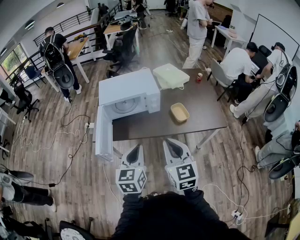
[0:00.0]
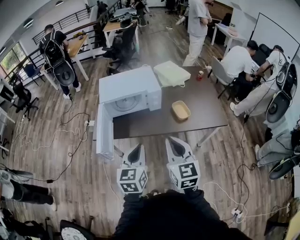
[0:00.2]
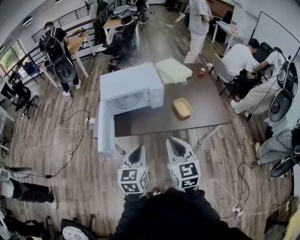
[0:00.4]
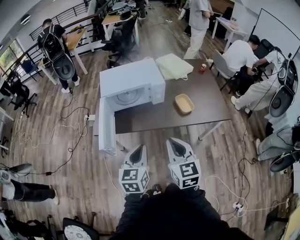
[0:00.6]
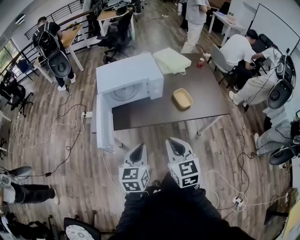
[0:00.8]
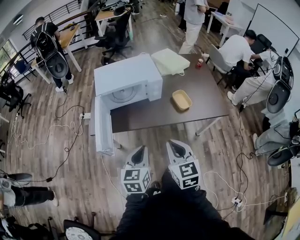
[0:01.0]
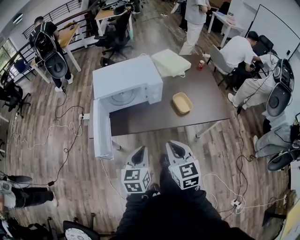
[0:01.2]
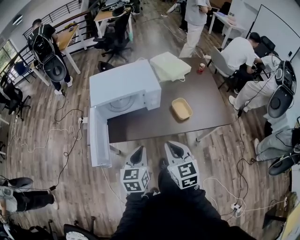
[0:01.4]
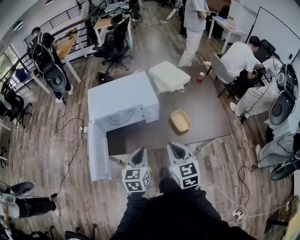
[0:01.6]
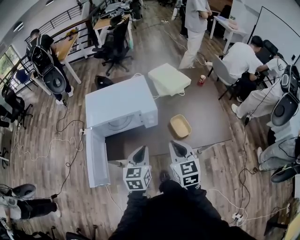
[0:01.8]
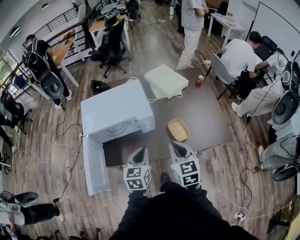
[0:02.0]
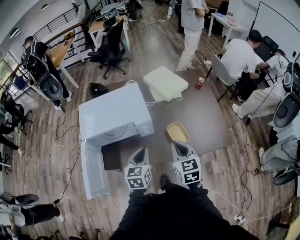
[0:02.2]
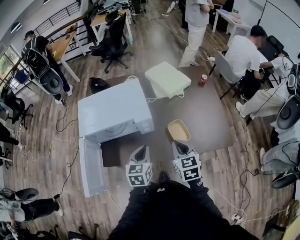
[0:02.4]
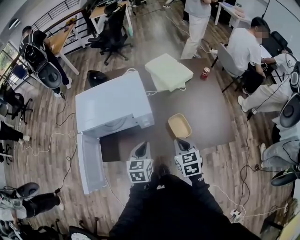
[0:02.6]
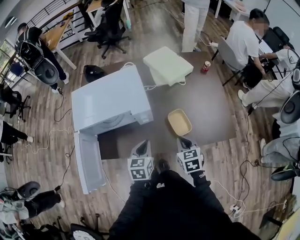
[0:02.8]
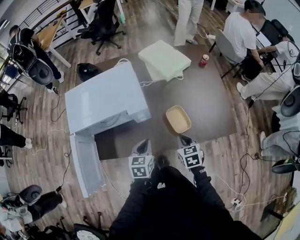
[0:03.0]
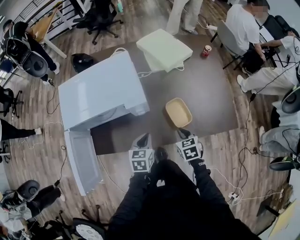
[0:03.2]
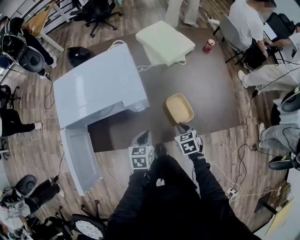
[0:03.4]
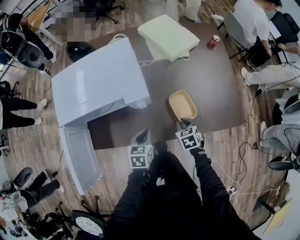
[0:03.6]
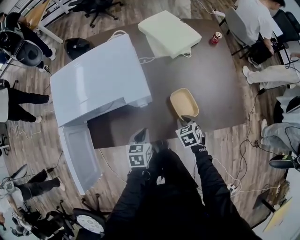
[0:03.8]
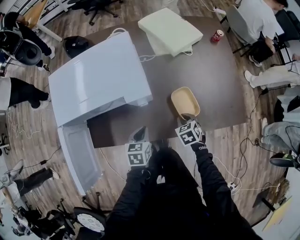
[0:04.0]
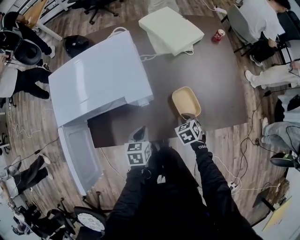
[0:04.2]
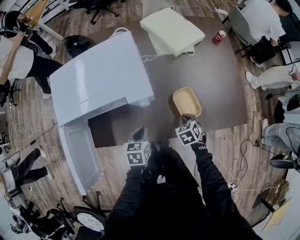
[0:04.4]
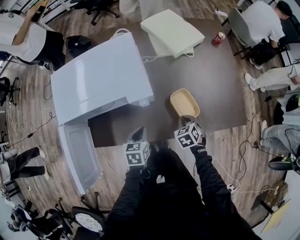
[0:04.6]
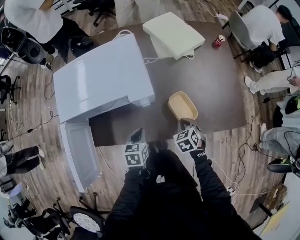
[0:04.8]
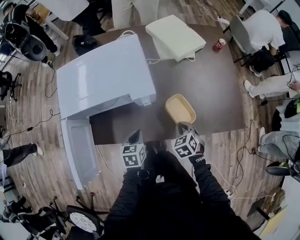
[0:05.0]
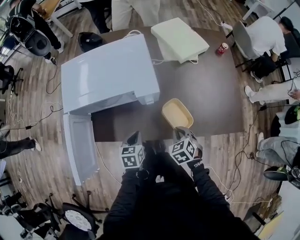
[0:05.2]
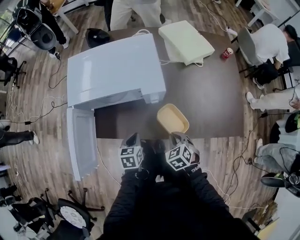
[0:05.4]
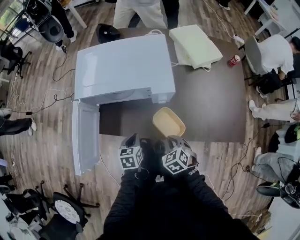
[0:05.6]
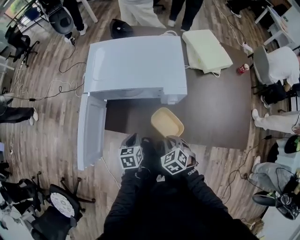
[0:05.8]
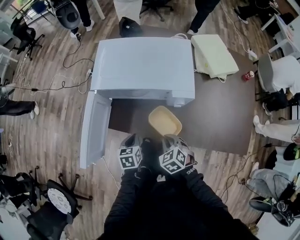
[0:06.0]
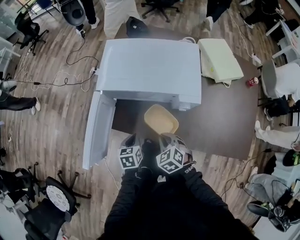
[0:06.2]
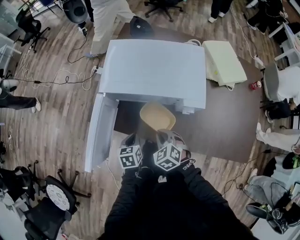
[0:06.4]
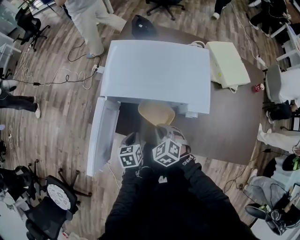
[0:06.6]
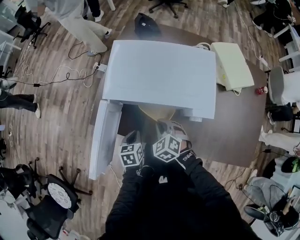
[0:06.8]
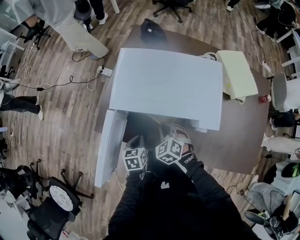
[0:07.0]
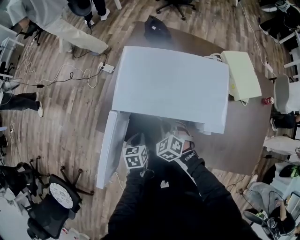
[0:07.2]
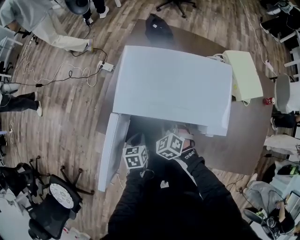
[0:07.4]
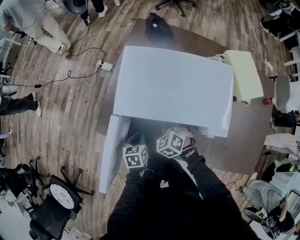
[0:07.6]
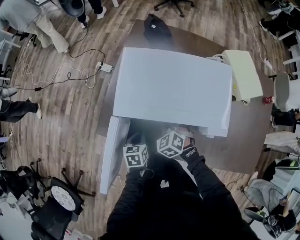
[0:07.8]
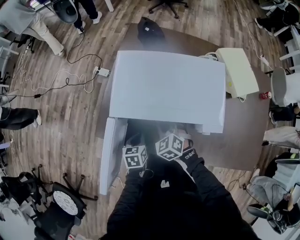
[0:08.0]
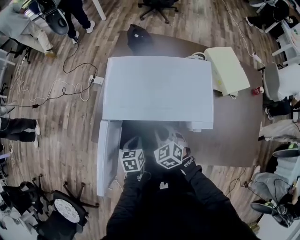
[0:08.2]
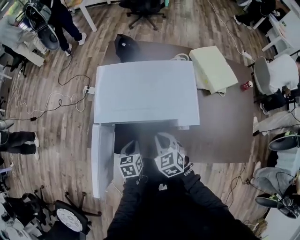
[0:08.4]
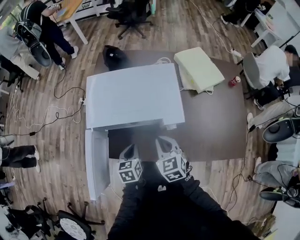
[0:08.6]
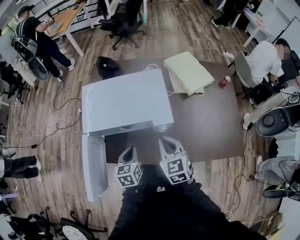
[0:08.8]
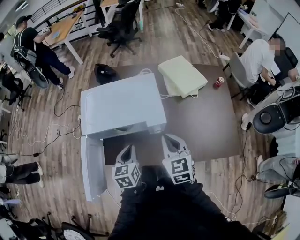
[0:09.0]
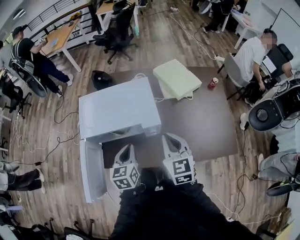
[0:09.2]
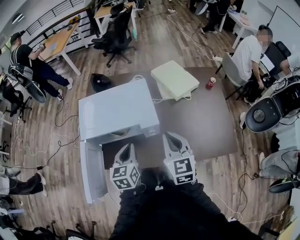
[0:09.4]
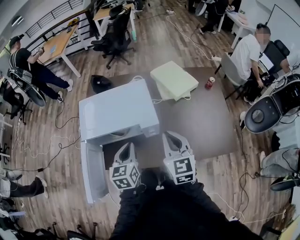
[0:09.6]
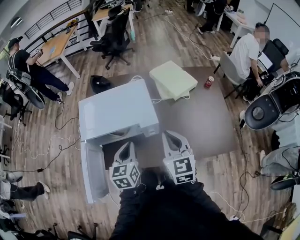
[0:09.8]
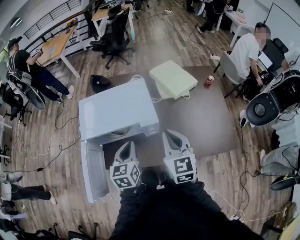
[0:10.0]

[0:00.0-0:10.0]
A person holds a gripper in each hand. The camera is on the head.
0:00.0 to 0:01.4: The two grippers go about 15 cm forward and downward.
0:01.4 to 0:02.8: The right gripper shifts some 30 cm forward, downward and to the right, and rotates some 20 degrees. Meanwhile the left gripper is displaced forward, to the right and downward by roughly 25 cm.
0:02.8 to 0:04.2: The two grippers go roughly 15 cm downward. The right gripper rotates approximately 30 degrees.
0:04.2 to 0:05.8: The left gripper travels to the left and backward by about 15 cm, and rotates some 20 degrees, while the right gripper moves to the left, backward and upward, roughly 20 cm, and changes its angle by some 30 degrees.
0:05.8 to 0:07.2: The right gripper moves forward and to the left, some 25 cm, and rotates approximately 20 degrees. Meanwhile the left gripper goes roughly 15 cm forward and to the left.
0:07.2 to 0:08.6: The right gripper goes roughly 20 cm upward, to the right and backward, and changes its angle by about 40 degrees. Meanwhile the left gripper moves to the right and upward, some 10 cm.
0:08.6 to 0:10.0: Both grippers move upward and to the right, about 20 cm. The right gripper turns by some 30 degrees. The left gripper turns by roughly 20 degrees.

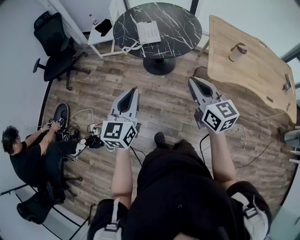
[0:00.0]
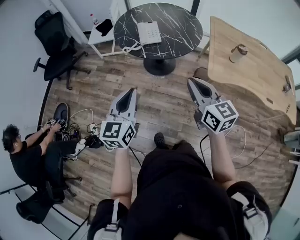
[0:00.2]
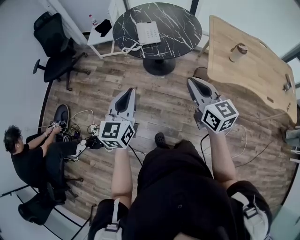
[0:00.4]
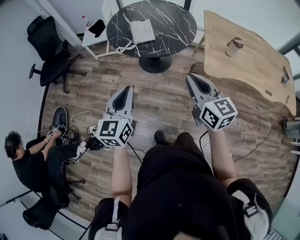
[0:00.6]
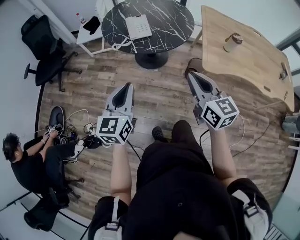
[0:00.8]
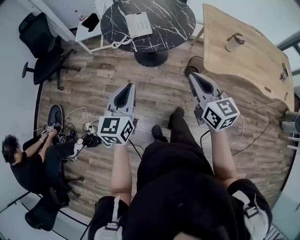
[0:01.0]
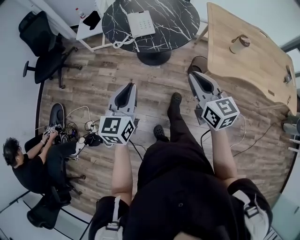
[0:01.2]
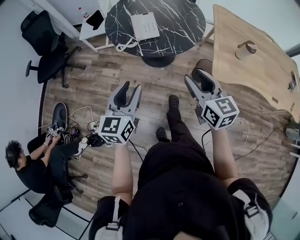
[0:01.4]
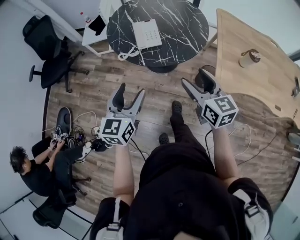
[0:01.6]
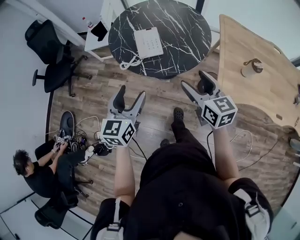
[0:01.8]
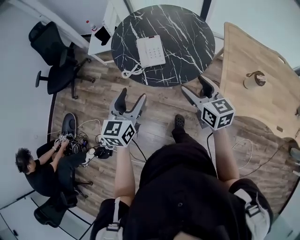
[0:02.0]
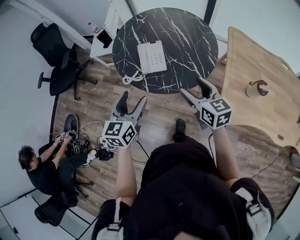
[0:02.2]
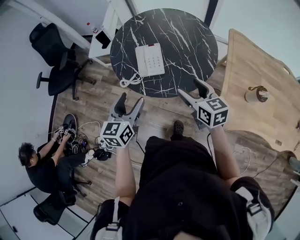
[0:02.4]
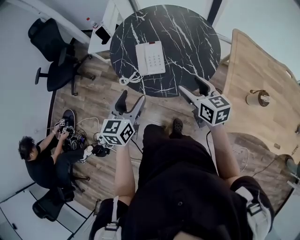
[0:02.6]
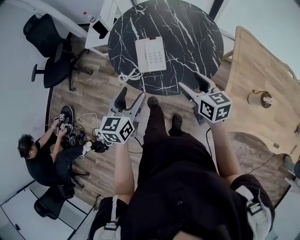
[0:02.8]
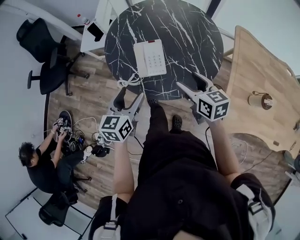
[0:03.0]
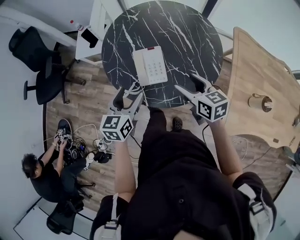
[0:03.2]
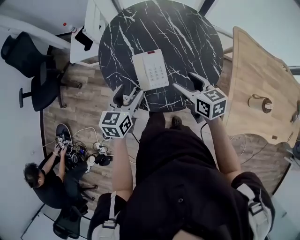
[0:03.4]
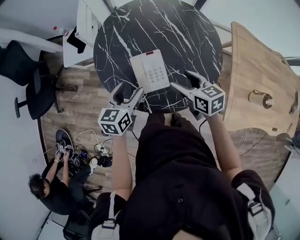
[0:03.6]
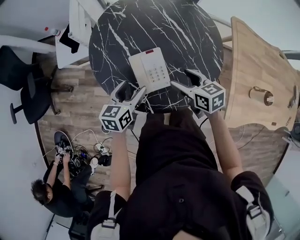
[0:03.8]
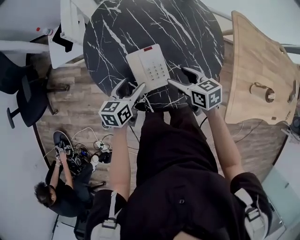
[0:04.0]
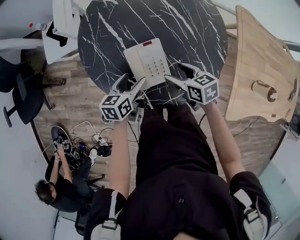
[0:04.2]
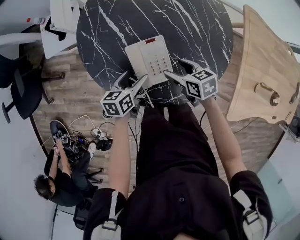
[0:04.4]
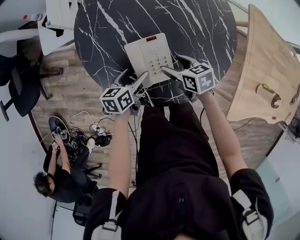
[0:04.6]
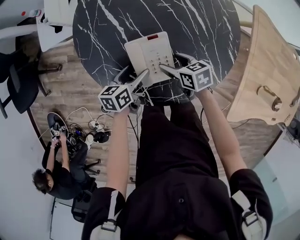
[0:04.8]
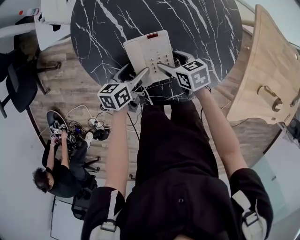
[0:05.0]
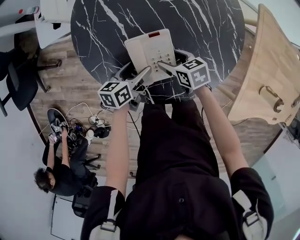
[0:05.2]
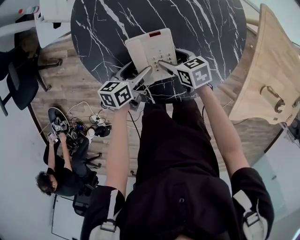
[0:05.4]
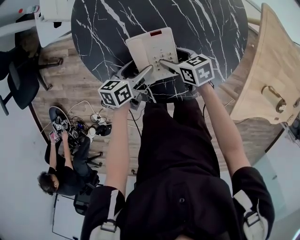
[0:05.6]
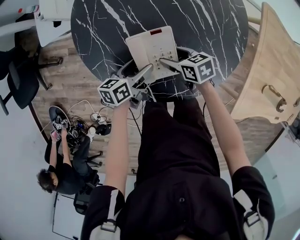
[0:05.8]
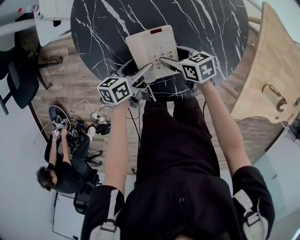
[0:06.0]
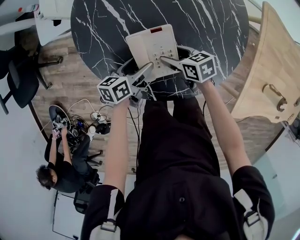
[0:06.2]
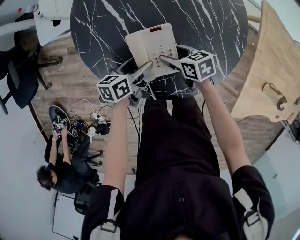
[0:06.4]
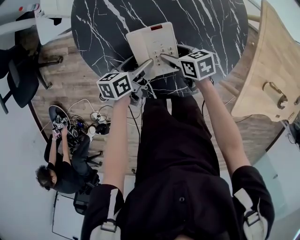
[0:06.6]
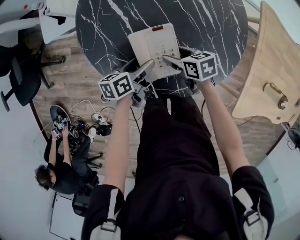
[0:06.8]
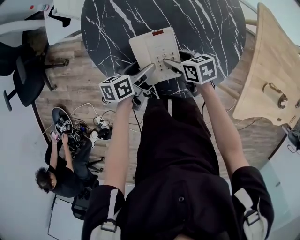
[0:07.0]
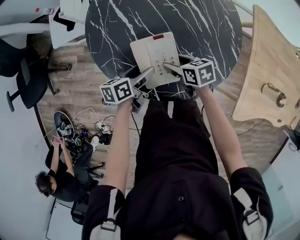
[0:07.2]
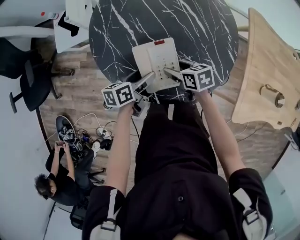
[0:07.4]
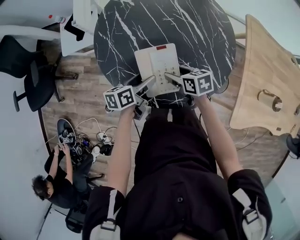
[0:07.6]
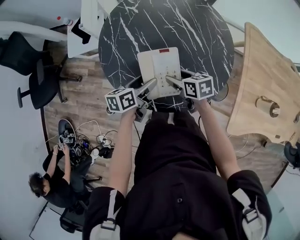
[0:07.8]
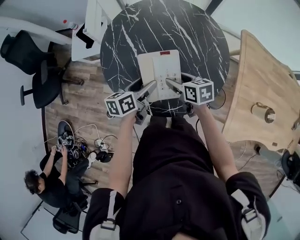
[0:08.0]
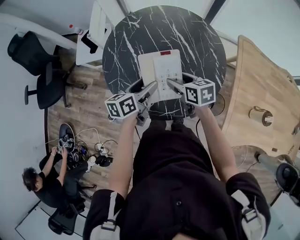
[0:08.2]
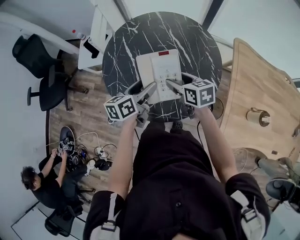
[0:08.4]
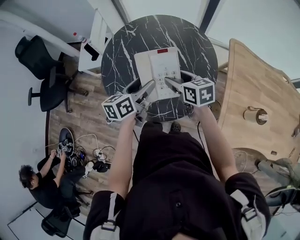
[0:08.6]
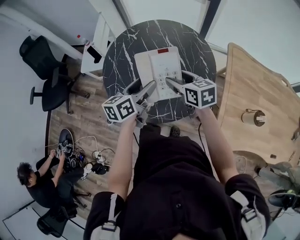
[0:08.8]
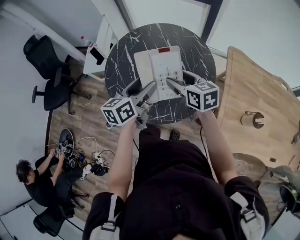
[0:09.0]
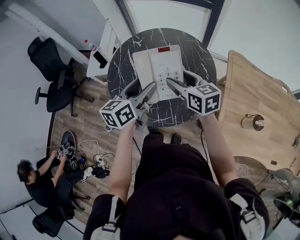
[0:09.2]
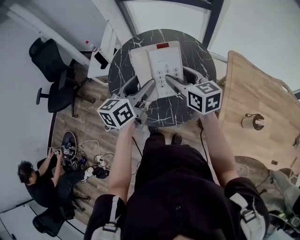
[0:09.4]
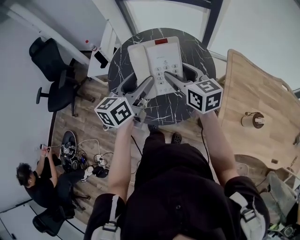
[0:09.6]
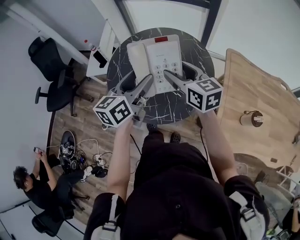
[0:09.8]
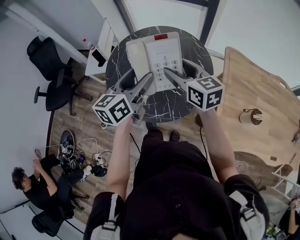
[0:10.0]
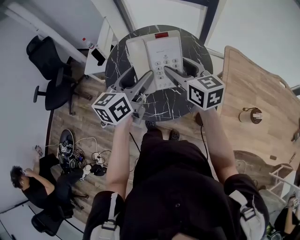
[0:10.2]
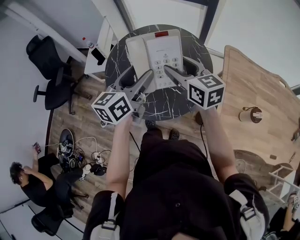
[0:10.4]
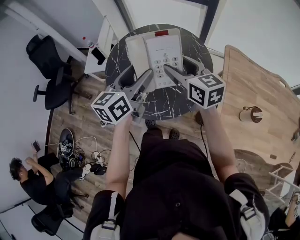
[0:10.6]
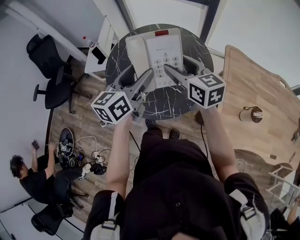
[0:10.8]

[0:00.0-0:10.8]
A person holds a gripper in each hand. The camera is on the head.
0:00.0 to 0:01.6: The grippers both shift forward by about 15 cm. The left gripper opens; the right gripper opens its fingers.
0:01.6 to 0:03.0: The two grippers go about 25 cm forward.
0:03.0 to 0:04.6: The right gripper shifts roughly 25 cm downward, forward and to the left, and rotates some 30 degrees; the left gripper heads downward and forward, covering roughly 30 cm, and turns by approximately 40 degrees.
0:04.6 to 0:06.2: There are only small adjustments of the grippers.
0:06.2 to 0:07.8: Both grippers travel together upward, some 10 cm.
0:07.8 to 0:09.2: The two grippers go roughly 25 cm upward and to the right. The left gripper changes its angle by roughly 30 degrees; the right gripper swivels some 30 degrees.
0:09.2 to 0:10.8: Both grippers move upward, about 5 cm.

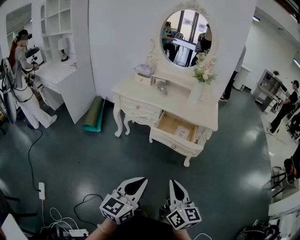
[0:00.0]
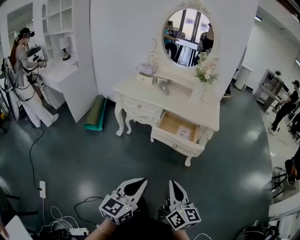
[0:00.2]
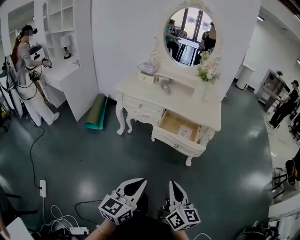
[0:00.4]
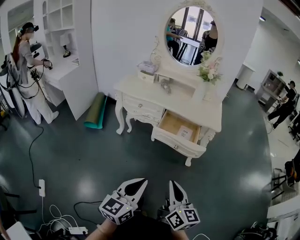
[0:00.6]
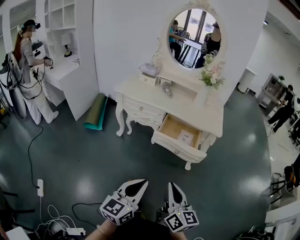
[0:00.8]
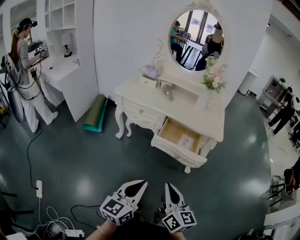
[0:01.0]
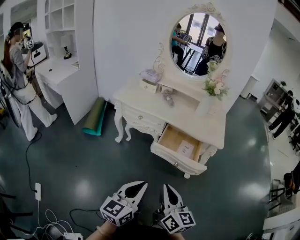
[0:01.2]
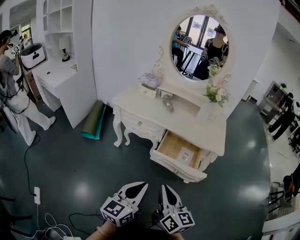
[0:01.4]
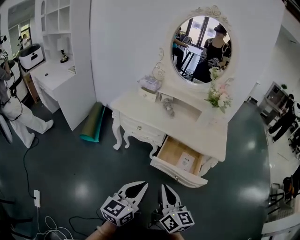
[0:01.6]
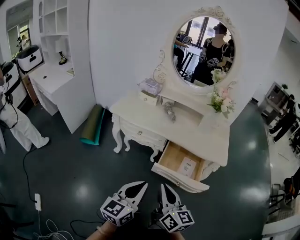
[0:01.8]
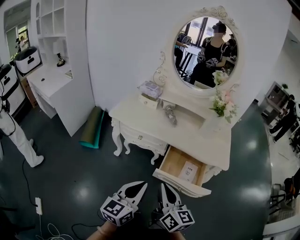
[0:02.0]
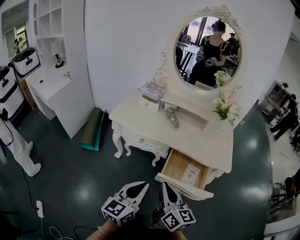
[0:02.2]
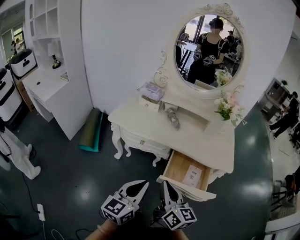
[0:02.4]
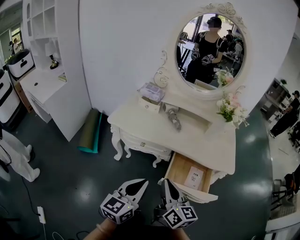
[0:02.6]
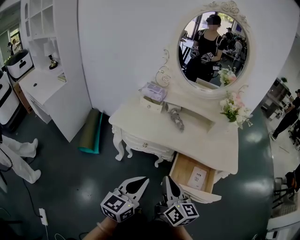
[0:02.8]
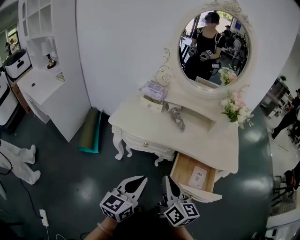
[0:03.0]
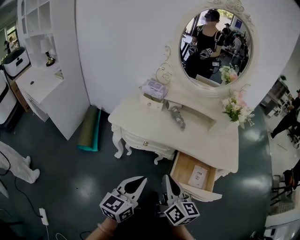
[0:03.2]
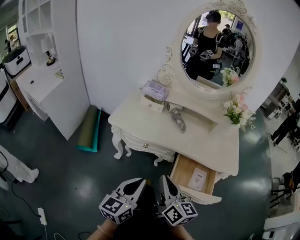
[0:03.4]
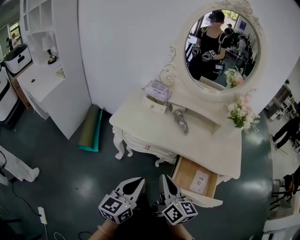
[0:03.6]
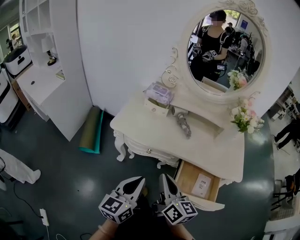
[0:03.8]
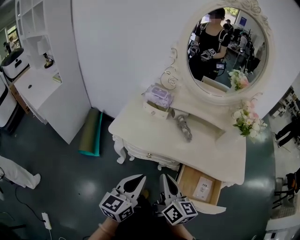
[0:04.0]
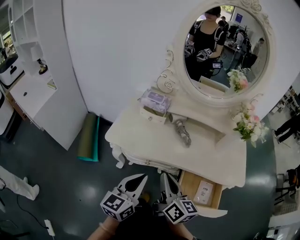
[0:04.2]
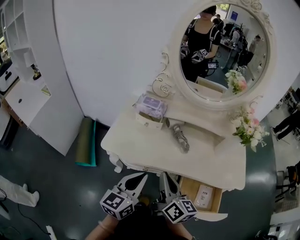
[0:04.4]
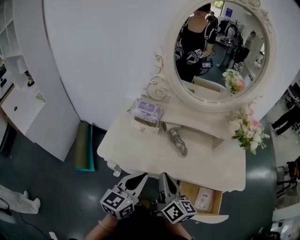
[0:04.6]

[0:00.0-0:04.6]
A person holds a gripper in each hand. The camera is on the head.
0:00.0 to 0:01.6: The left gripper shifts some 20 cm forward; the right gripper travels forward and to the left by about 20 cm.
0:01.6 to 0:03.0: The two grippers go roughly 20 cm forward and to the left.
0:03.0 to 0:04.6: The two grippers go some 20 cm forward.
